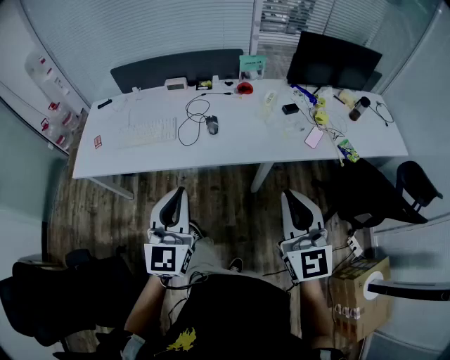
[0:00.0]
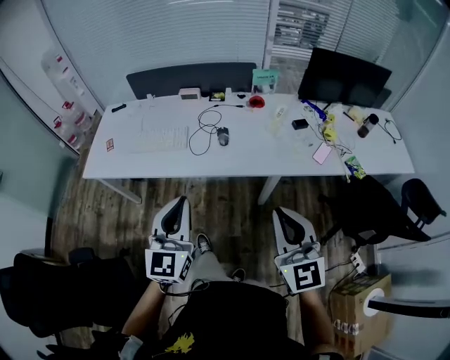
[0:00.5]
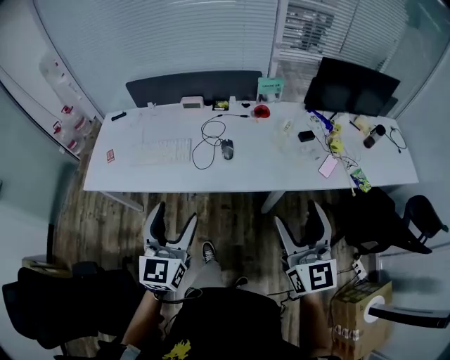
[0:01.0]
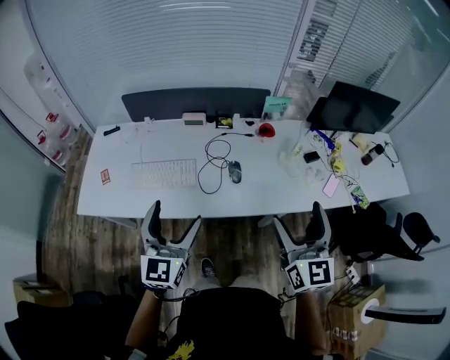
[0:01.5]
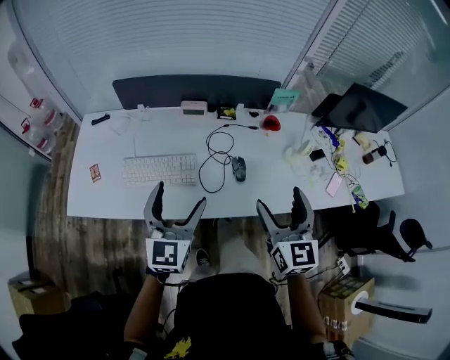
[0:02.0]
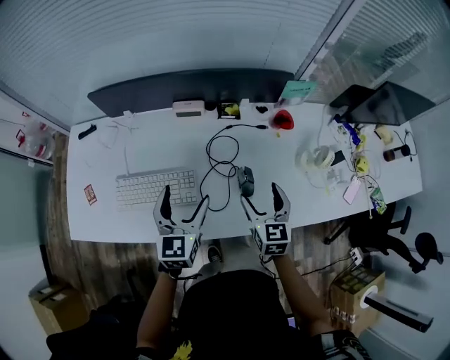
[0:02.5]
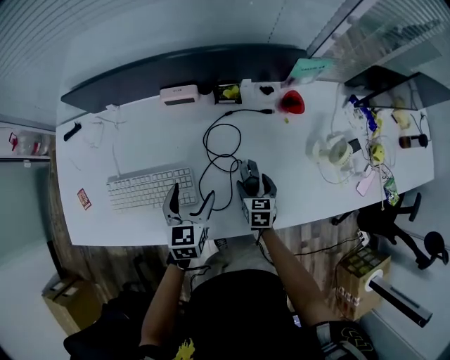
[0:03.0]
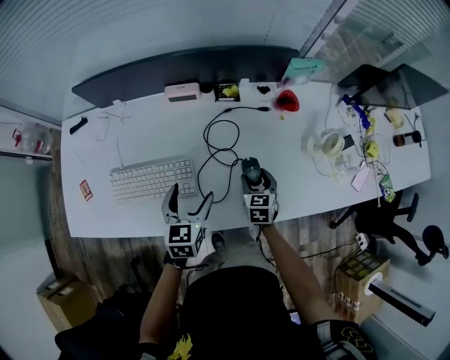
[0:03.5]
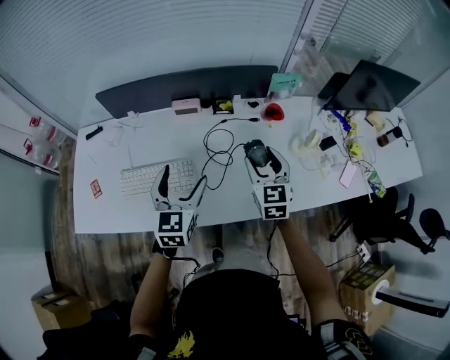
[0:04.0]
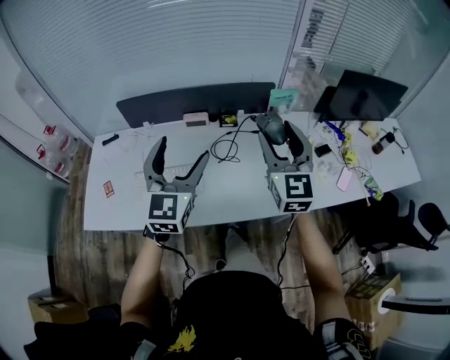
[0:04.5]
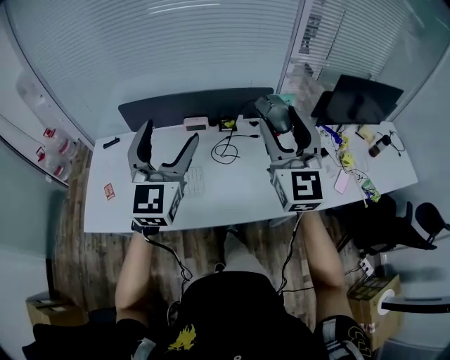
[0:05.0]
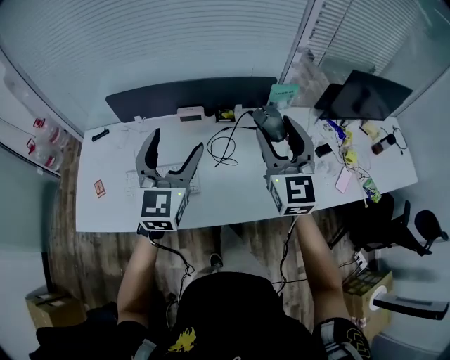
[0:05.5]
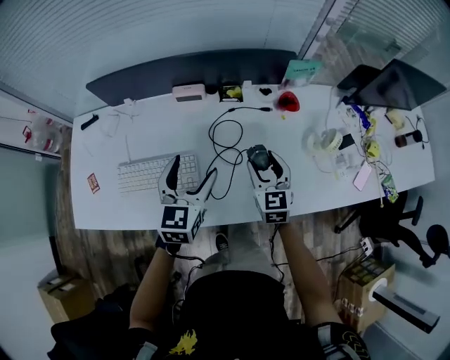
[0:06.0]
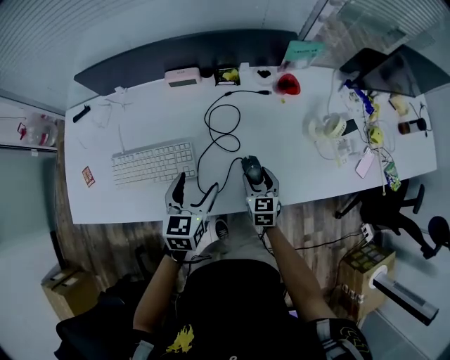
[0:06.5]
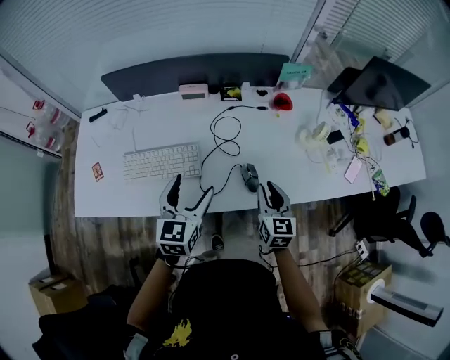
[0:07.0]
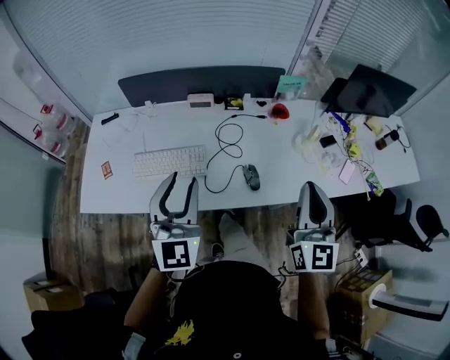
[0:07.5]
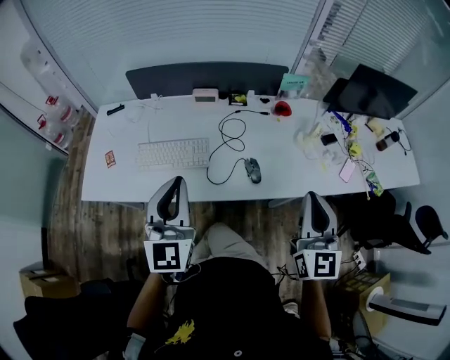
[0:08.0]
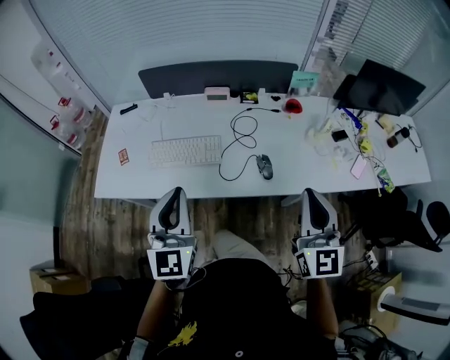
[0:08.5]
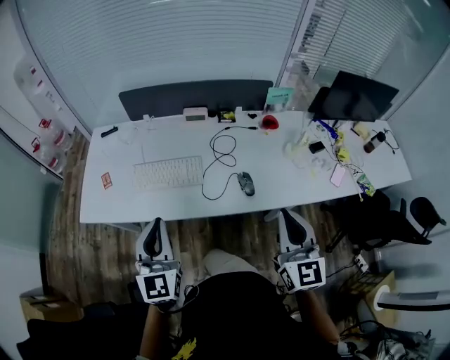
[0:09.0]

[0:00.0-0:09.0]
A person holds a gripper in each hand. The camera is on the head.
0:00.0 to 0:02.0: The grippers both shift forward and to the left by about 40 cm. The left gripper opens up, while the right gripper opens up.
0:02.0 to 0:04.5: The two grippers go about 10 cm forward. The right gripper moves about 40 cm downward and comes back; the left gripper travels downward and back again, approximately 25 cm each way.
0:04.5 to 0:07.0: The left gripper swings up and down, some 40 cm each way, with 2 reversals, and rotates about 30 degrees, while the right gripper swings up and down, approximately 50 cm each way, with 2 reversals, and rotates about 30 degrees.
0:07.0 to 0:09.0: The left gripper moves backward, upward and to the left, approximately 25 cm, turns by about 30 degrees, and closes its fingers. Meanwhile the right gripper shifts approximately 30 cm upward and backward, and swivels roughly 20 degrees.

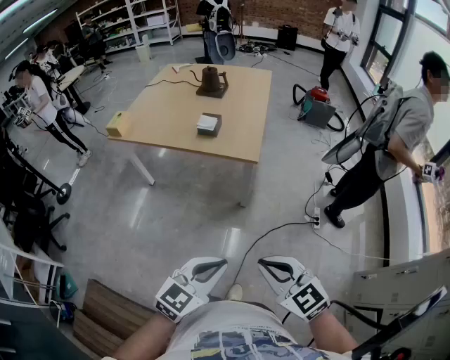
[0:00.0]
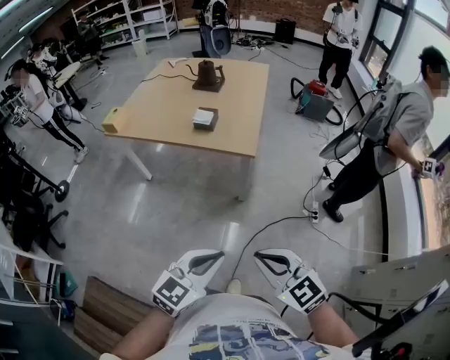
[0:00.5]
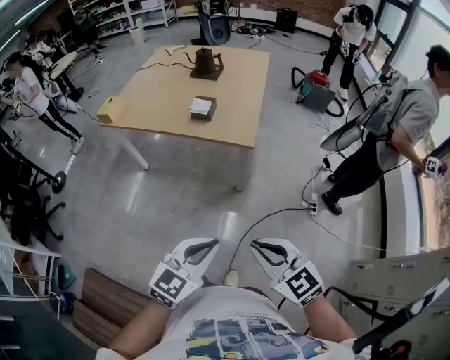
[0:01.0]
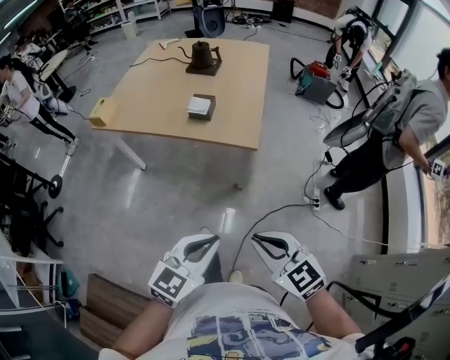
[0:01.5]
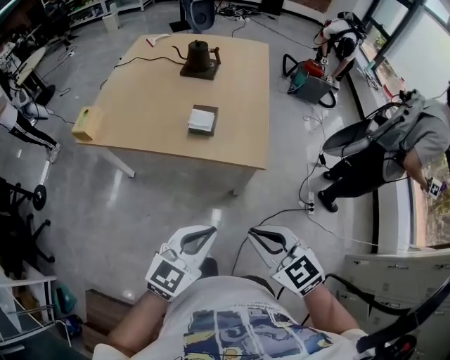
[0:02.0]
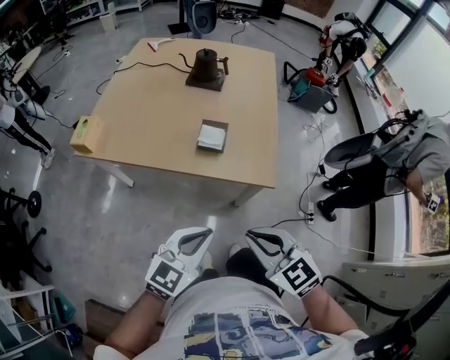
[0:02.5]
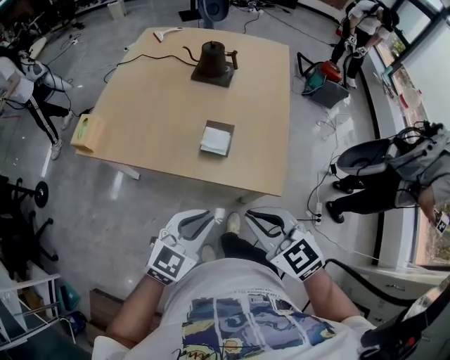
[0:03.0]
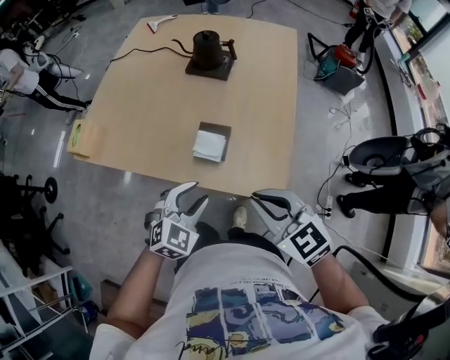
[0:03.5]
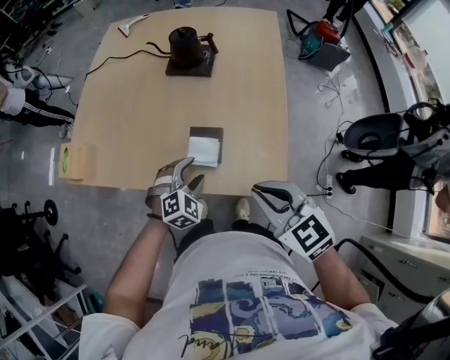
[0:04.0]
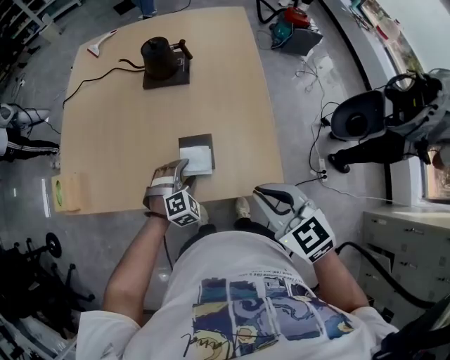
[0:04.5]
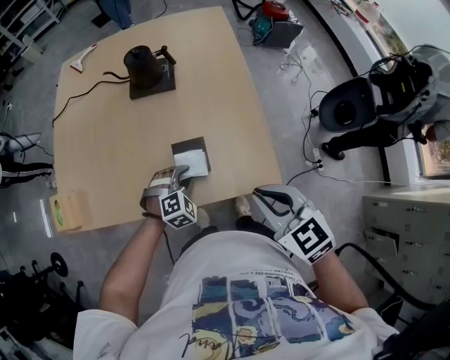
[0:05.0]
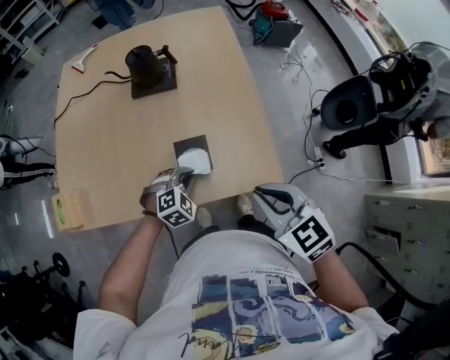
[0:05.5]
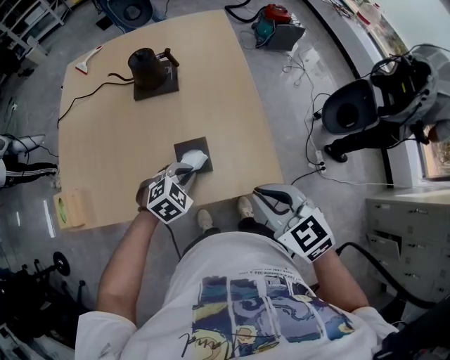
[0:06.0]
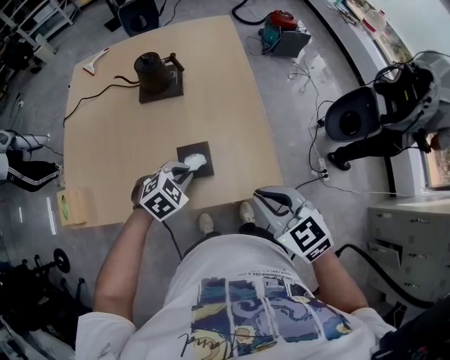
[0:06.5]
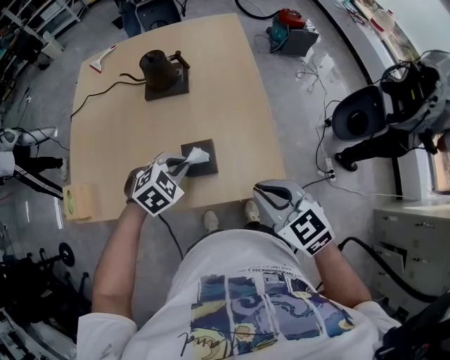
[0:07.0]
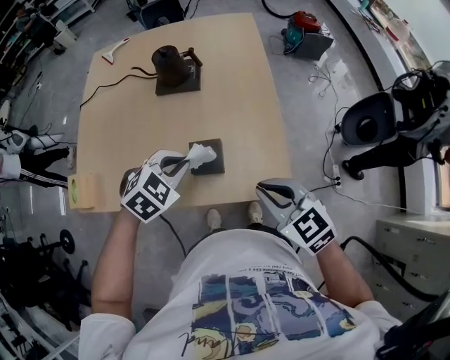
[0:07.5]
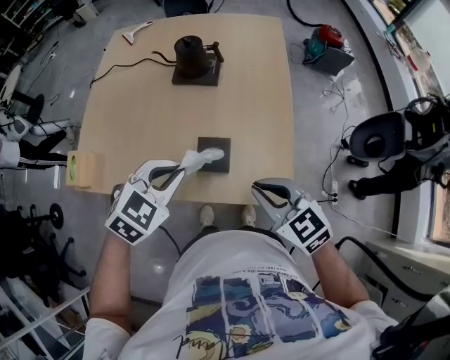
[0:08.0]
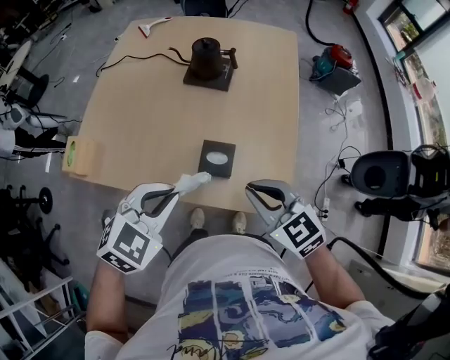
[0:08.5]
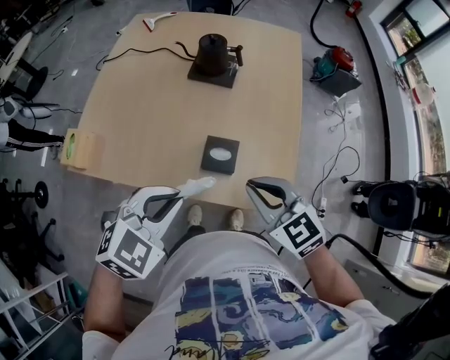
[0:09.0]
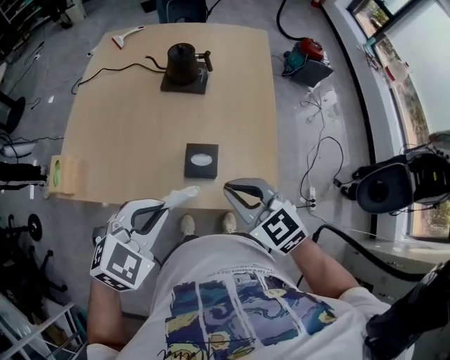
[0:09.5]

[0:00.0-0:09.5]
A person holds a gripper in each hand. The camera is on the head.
0:00.0 to 0:02.0: The two grippers go some 25 cm forward.
0:02.0 to 0:04.0: The right gripper heads forward, covering roughly 35 cm; the left gripper travels forward and downward by about 40 cm, points its fingers roughly 30 degrees further downward, and opens its fingers.
0:04.0 to 0:05.5: The left gripper rotates about 20 degrees, and closes up.
0:05.5 to 0:07.5: The left gripper moves upward, approximately 15 cm.
0:07.5 to 0:09.5: The right gripper moves to the left, approximately 10 cm, while the left gripper goes about 15 cm backward, upward and to the left.

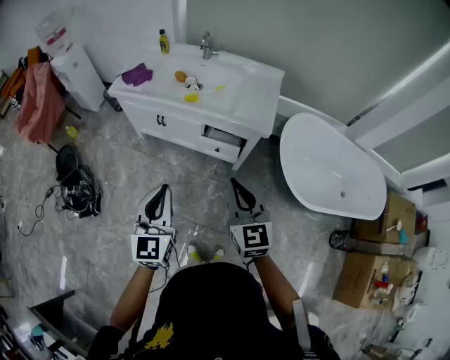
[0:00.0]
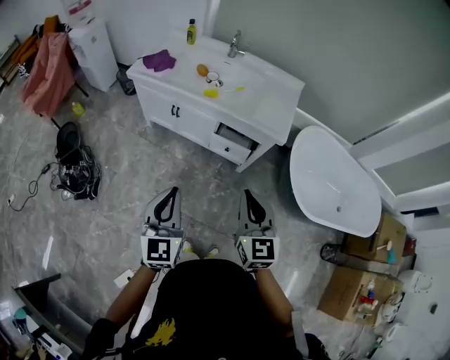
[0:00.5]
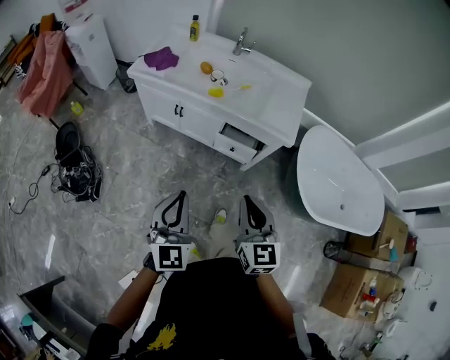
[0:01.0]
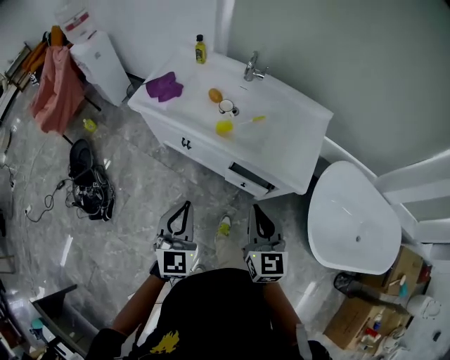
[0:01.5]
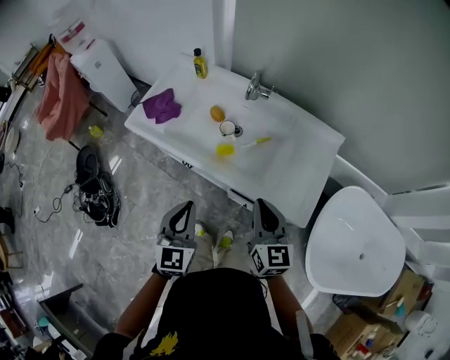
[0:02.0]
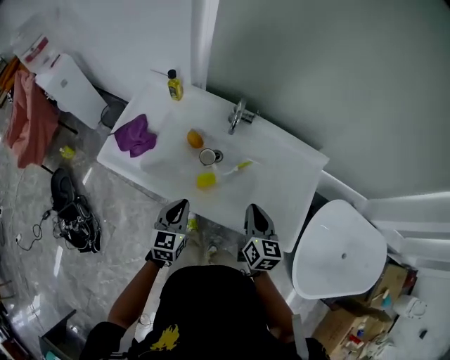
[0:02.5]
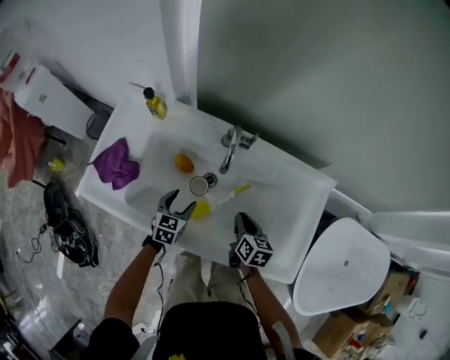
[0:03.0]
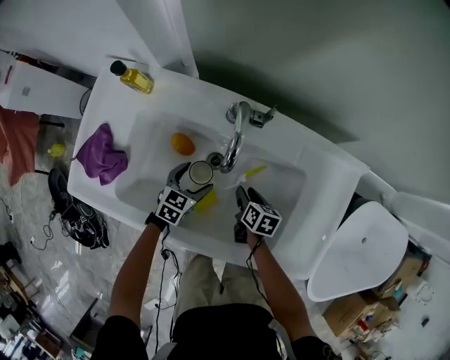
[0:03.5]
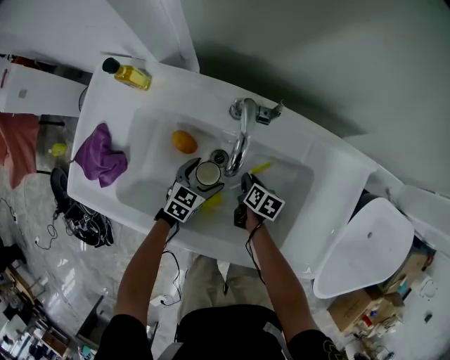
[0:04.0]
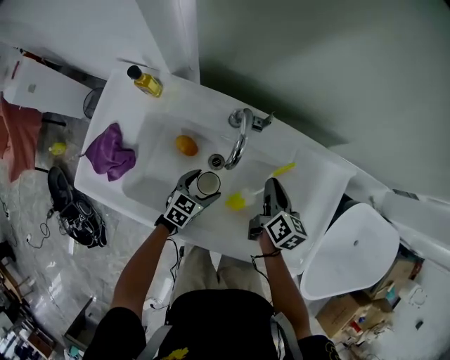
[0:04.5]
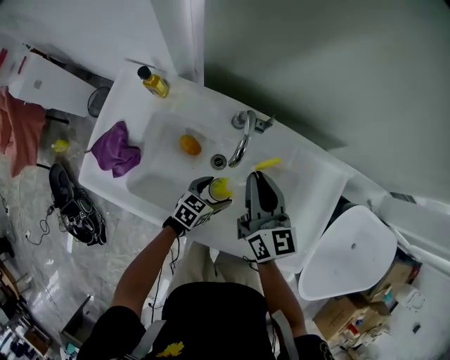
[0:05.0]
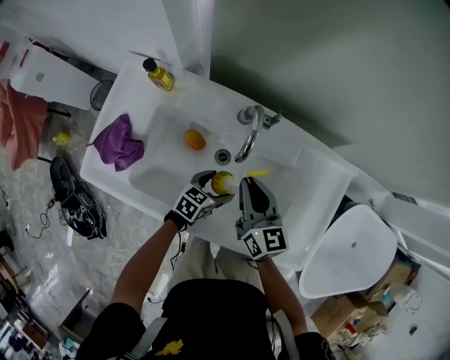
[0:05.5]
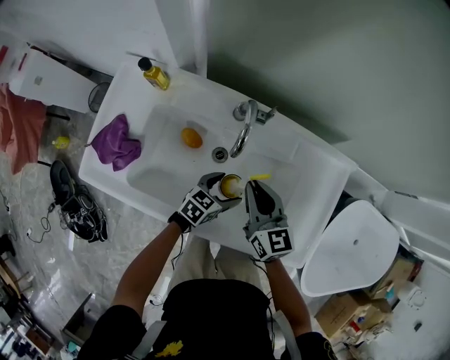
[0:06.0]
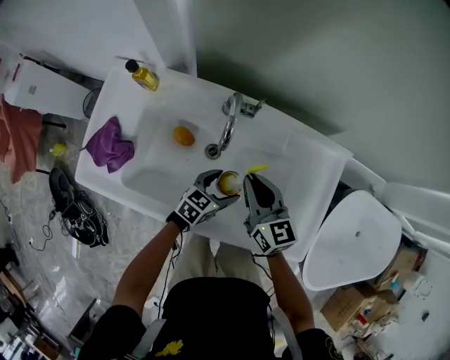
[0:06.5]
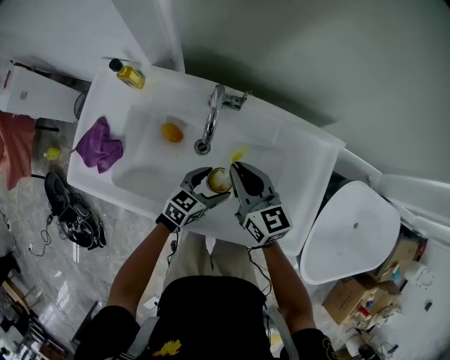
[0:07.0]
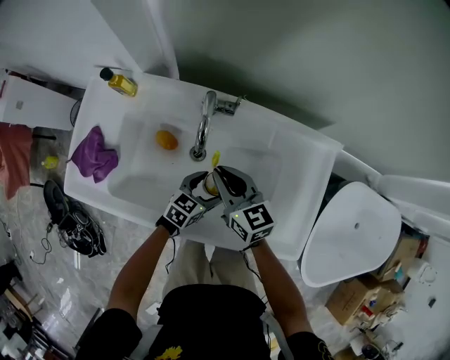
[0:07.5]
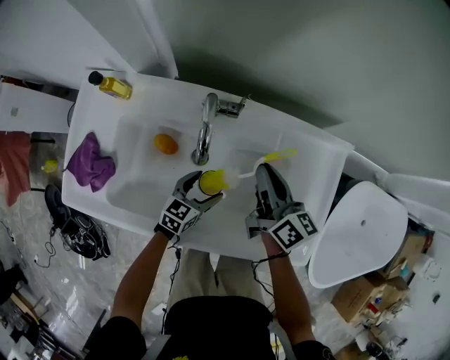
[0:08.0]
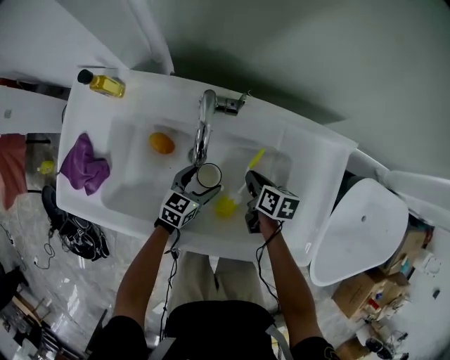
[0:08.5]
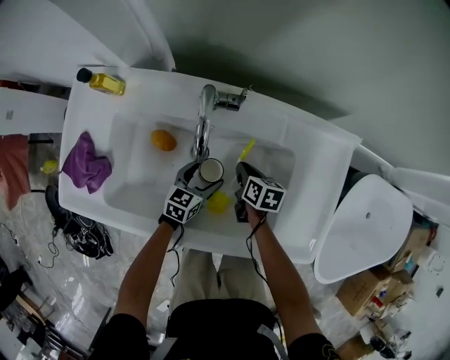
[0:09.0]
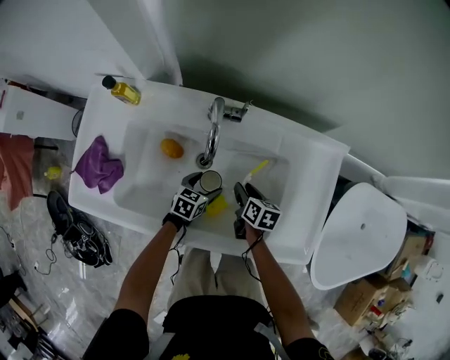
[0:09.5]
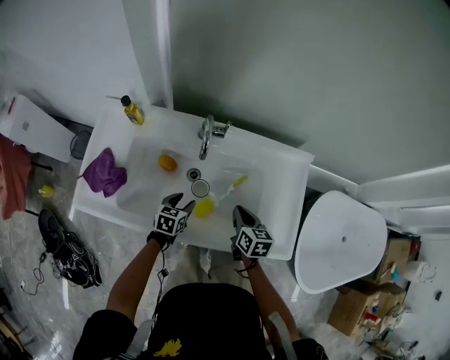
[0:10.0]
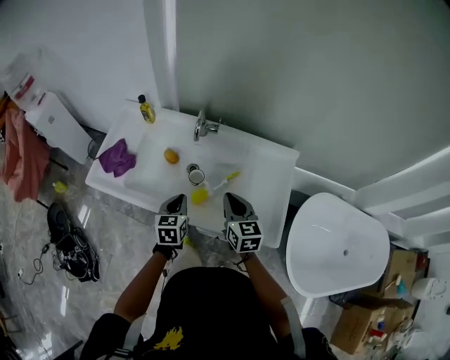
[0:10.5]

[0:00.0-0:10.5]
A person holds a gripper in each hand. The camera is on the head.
0:00.0 to 0:02.0: The two grippers travel together, forward, roughly 40 cm.
0:02.0 to 0:04.0: Both grippers travel together downward and forward, some 60 cm. The right gripper angles its fingers downward, by some 40 degrees, and opens. Meanwhile the left gripper swivels some 50 degrees, and opens its fingers.
0:04.0 to 0:06.5: The right gripper travels upward by about 30 cm, and points its fingers about 40 degrees further upward, while the left gripper heads upward and to the right, covering about 15 cm.
0:06.5 to 0:08.5: The right gripper shifts roughly 20 cm downward, and tips its fingers downward by about 30 degrees. The left gripper shifts about 10 cm downward.
0:08.5 to 0:10.5: Both grippers move upward and backward, some 30 cm. The left gripper turns by about 30 degrees, and closes, while the right gripper rotates roughly 50 degrees, and opens and closes again.
